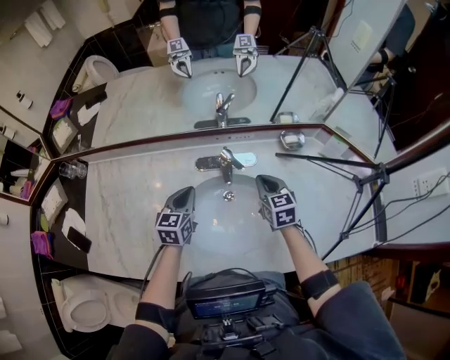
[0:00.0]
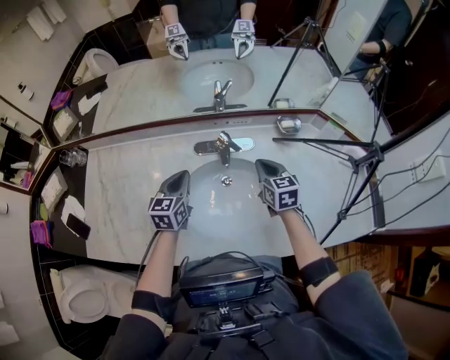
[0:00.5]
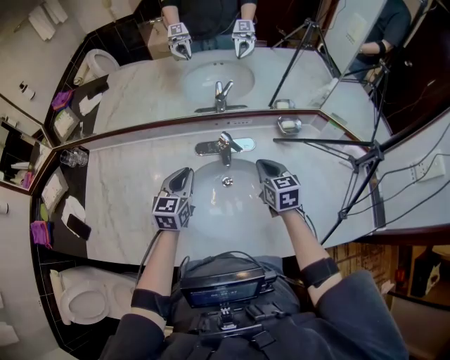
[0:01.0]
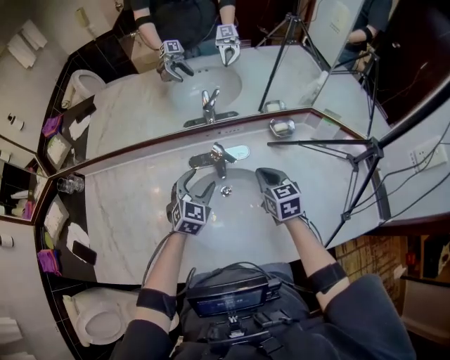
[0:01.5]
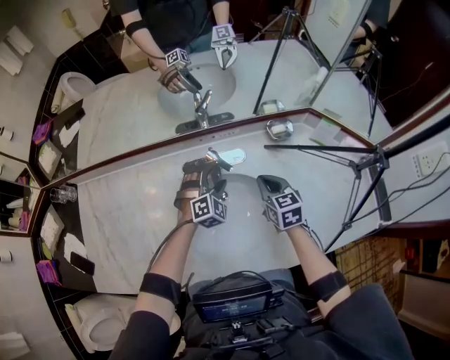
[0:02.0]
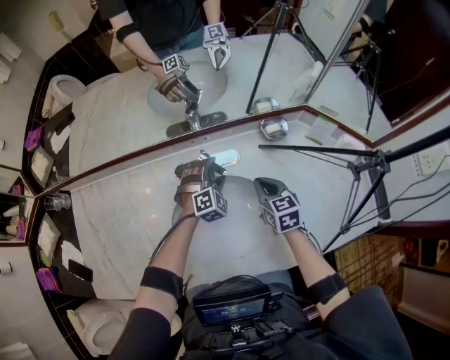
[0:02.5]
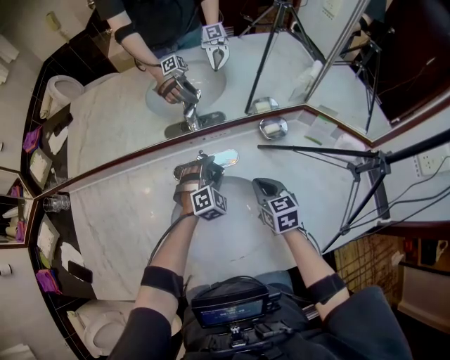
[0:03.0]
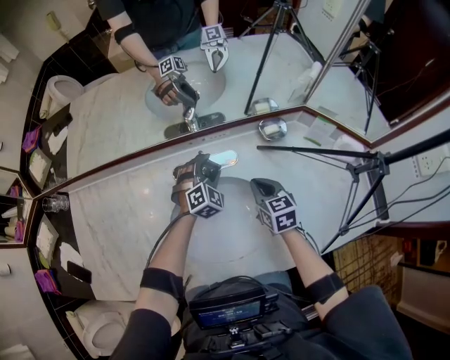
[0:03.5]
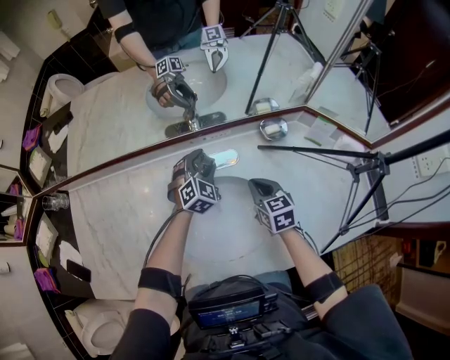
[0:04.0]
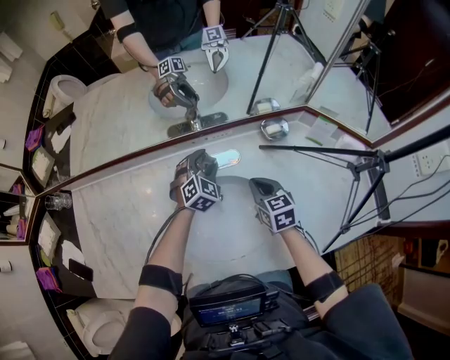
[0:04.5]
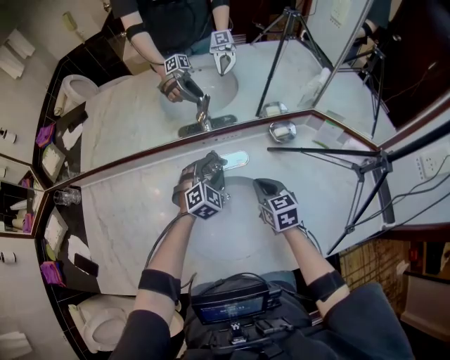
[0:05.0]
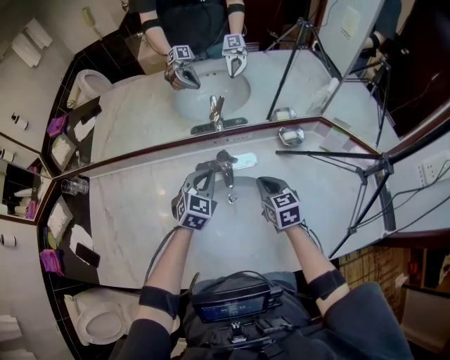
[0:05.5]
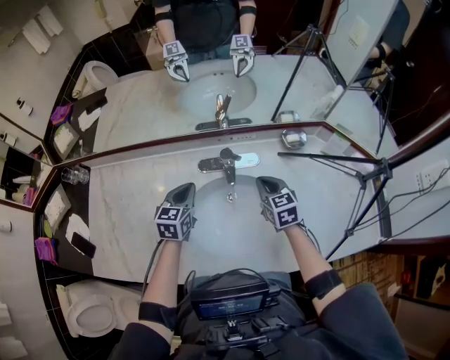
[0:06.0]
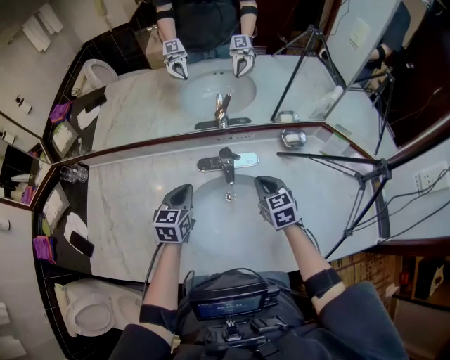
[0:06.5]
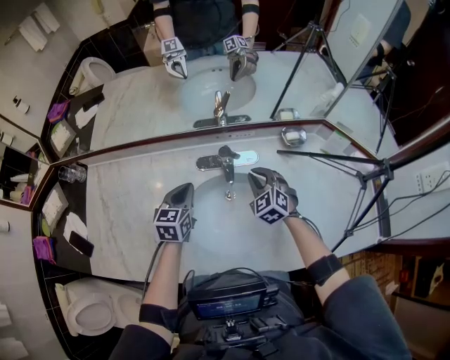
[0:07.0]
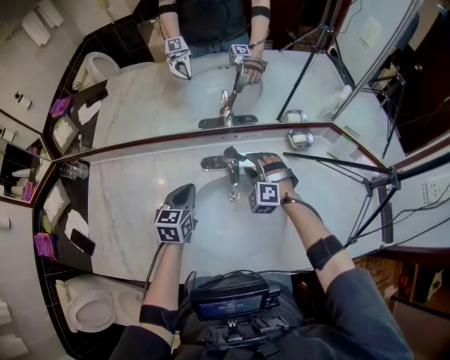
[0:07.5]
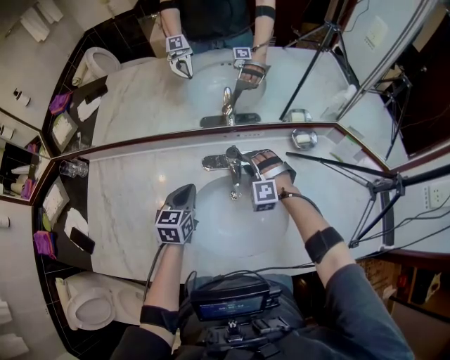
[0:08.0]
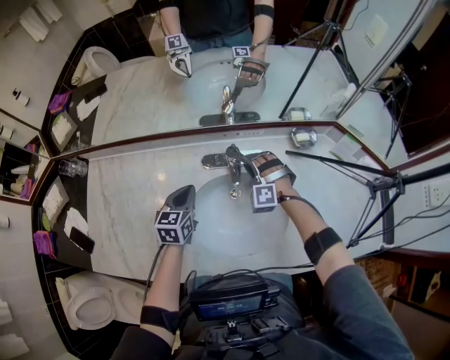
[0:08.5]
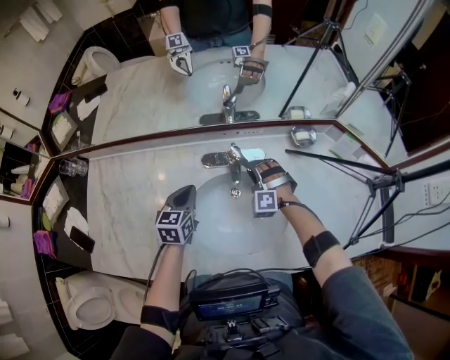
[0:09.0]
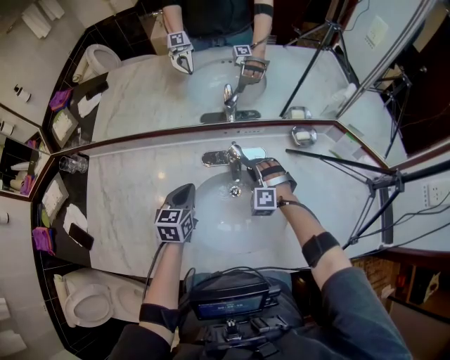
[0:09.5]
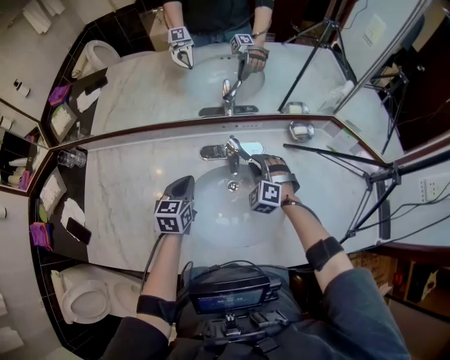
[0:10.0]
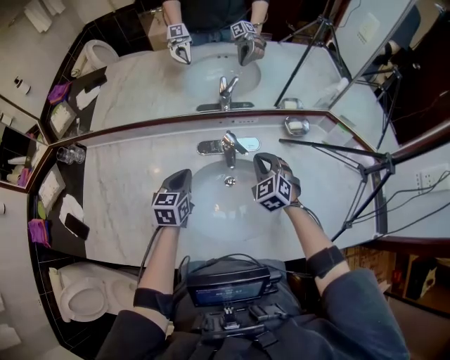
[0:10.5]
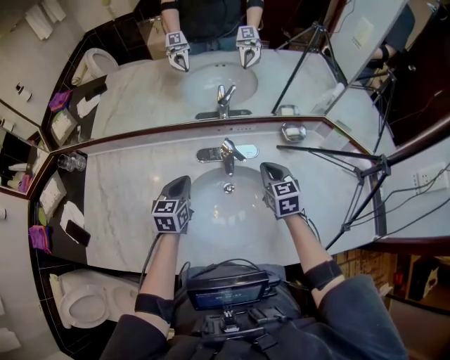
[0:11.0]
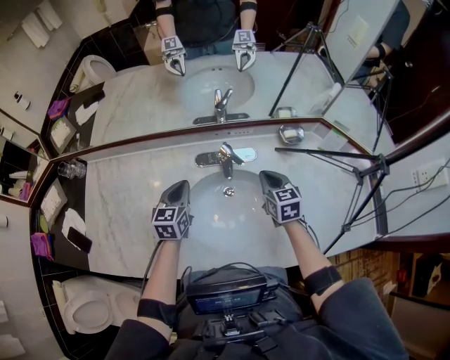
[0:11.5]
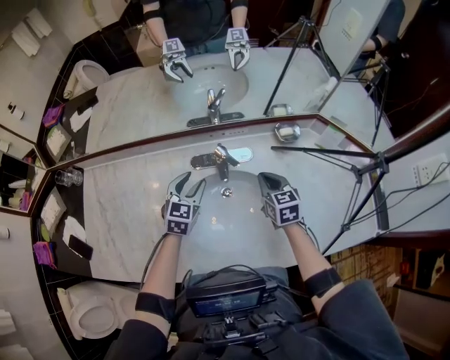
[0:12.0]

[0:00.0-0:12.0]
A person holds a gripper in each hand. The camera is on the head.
0:00.0 to 0:02.0: The left gripper travels to the right and forward by approximately 15 cm, twists approximately 70 degrees clockwise, seen from behind, and opens.
0:02.0 to 0:04.0: The left gripper is displaced forward by approximately 5 cm.
0:04.0 to 0:06.0: The right gripper changes place by approximately 5 cm; the left gripper moves to the left, backward and upward, about 20 cm, twists some 50 degrees counterclockwise, seen from behind, and closes up.
0:06.0 to 0:08.0: The right gripper moves forward, to the left and downward, about 10 cm, rotates around the line of its fingers by roughly 80 degrees, counterclockwise from behind, and opens up.
0:08.0 to 0:10.0: The right gripper swivels about 20 degrees.
0:10.0 to 0:12.0: The two grippers go some 5 cm to the right. The left gripper turns by about 20 degrees, and opens up. Meanwhile the right gripper rolls clockwise, seen from behind, by roughly 70 degrees, and closes up.

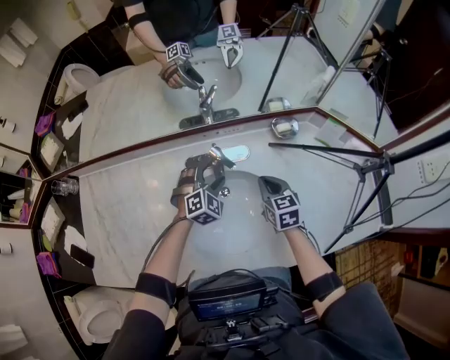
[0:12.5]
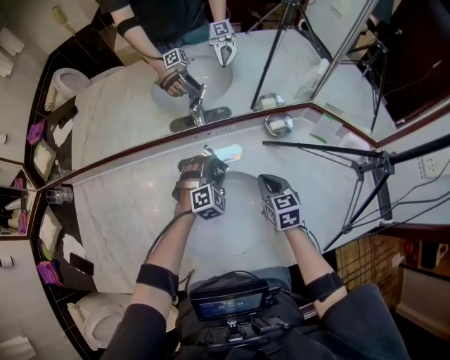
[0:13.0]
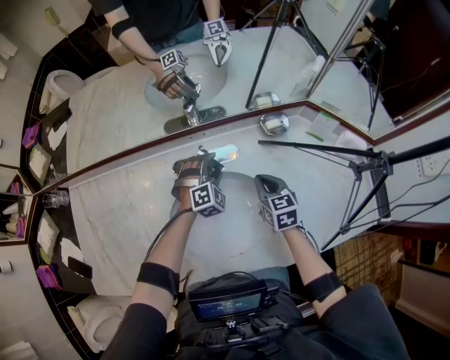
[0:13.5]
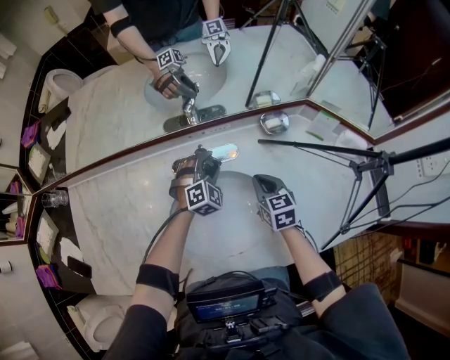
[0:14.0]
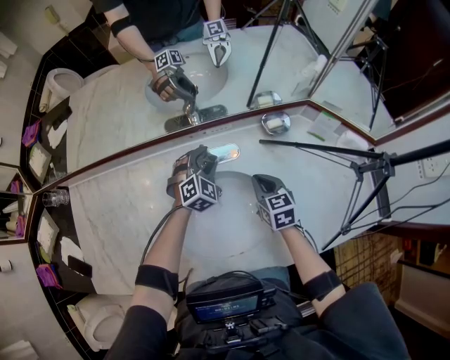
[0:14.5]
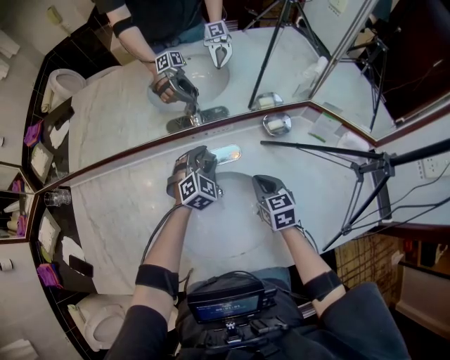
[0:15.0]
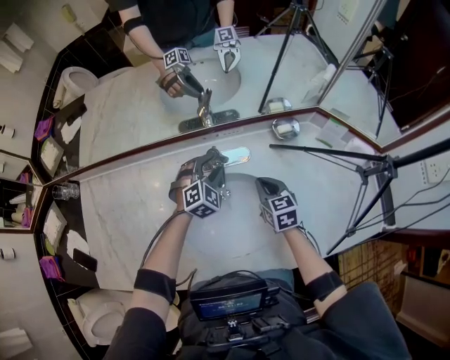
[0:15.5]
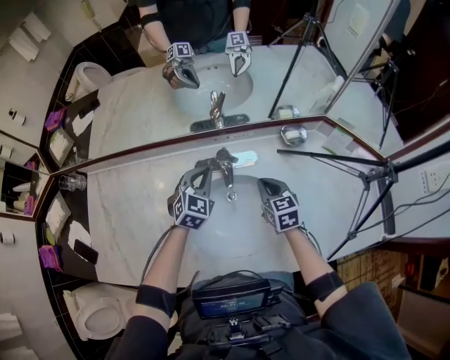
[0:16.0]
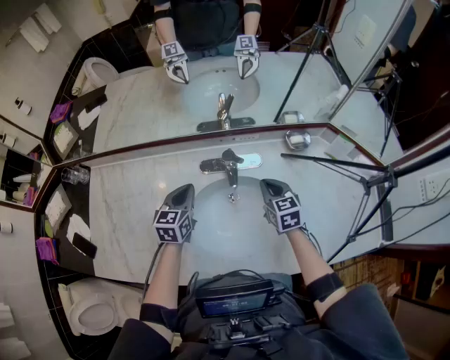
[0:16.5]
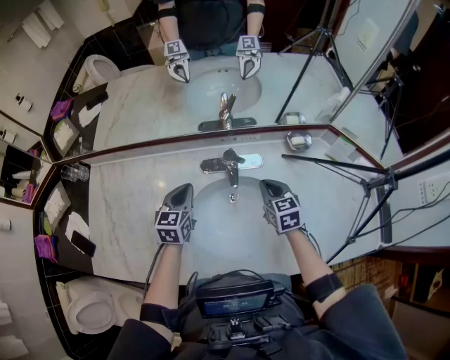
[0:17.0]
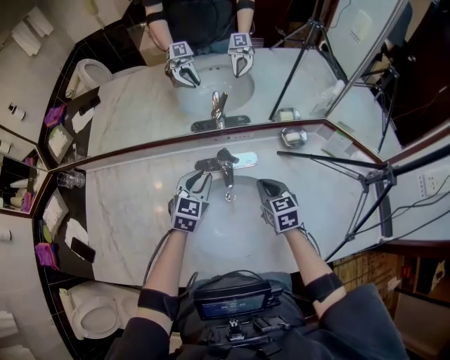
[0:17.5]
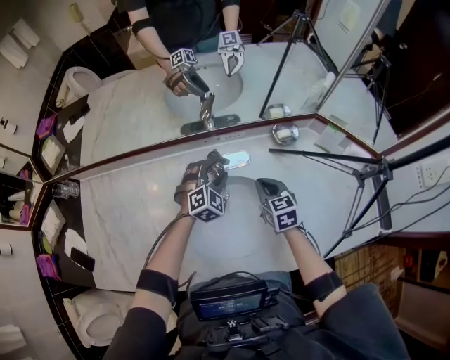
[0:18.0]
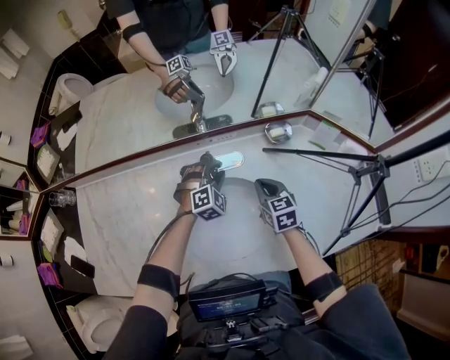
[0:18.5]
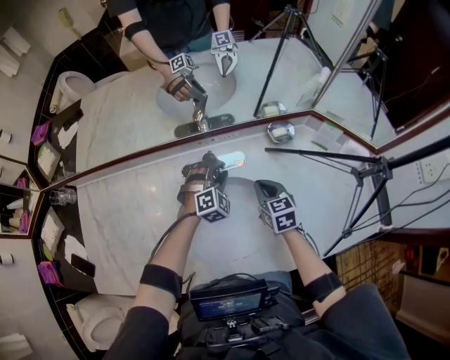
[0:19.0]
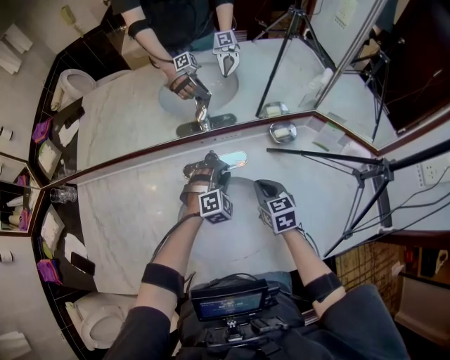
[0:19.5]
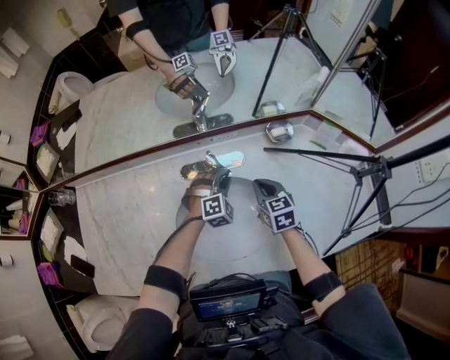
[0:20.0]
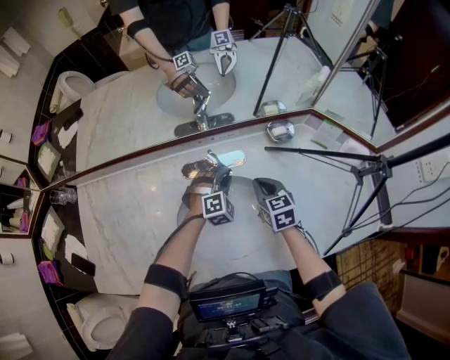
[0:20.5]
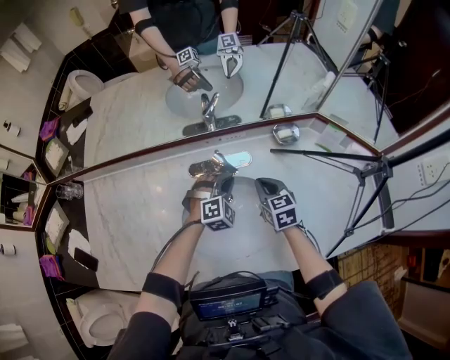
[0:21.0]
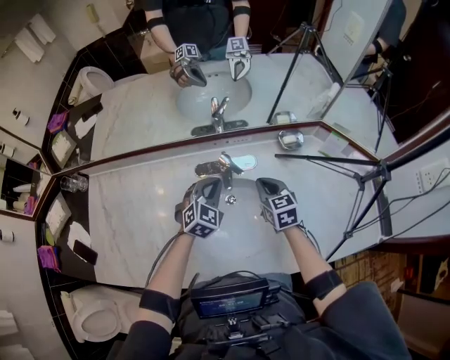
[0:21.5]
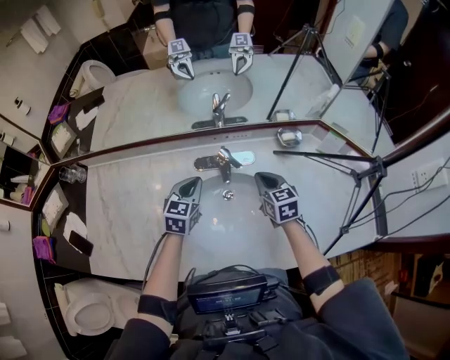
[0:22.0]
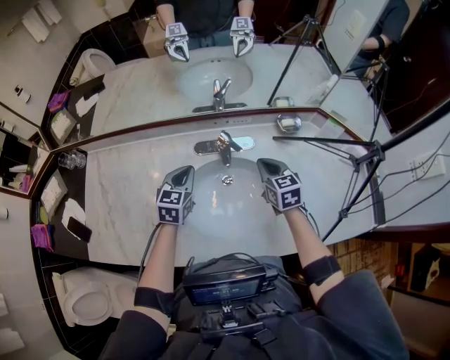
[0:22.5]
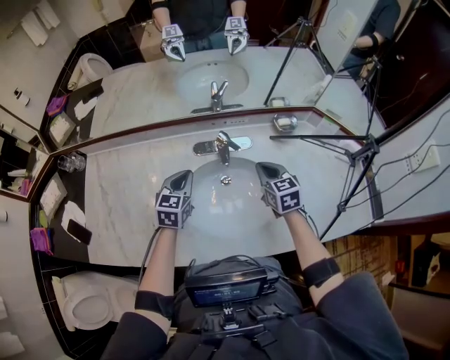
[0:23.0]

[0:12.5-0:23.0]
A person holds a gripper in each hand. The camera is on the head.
0:12.5 to 0:14.5: The left gripper goes some 5 cm forward, and closes up.
0:14.5 to 0:16.5: The right gripper ends up some 5 cm from where it was. Meanwhile the left gripper travels to the left and backward by roughly 20 cm, rotates around the line of its fingers by roughly 60 degrees, counterclockwise from behind, and closes up.
0:16.5 to 0:19.0: The left gripper heads to the right, covering approximately 20 cm, twists about 70 degrees clockwise, seen from behind, and opens.
0:19.0 to 0:21.0: The grippers make only small movements.
0:21.0 to 0:23.0: The right gripper goes about 5 cm upward; the left gripper goes roughly 20 cm to the left, upward and backward, and rotates around the line of its fingers by approximately 60 degrees, counterclockwise from behind.

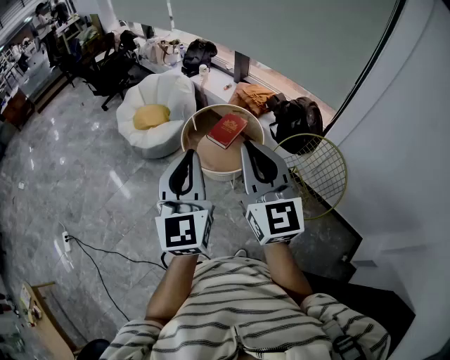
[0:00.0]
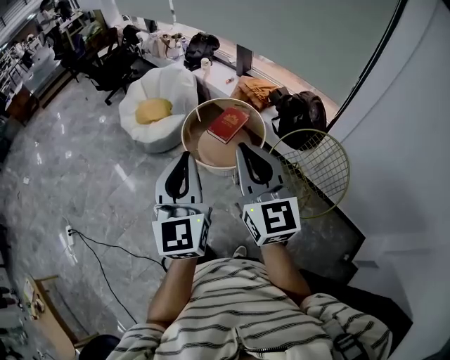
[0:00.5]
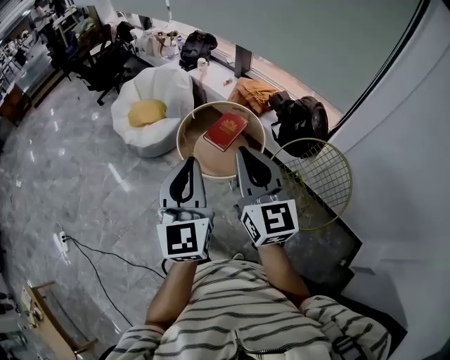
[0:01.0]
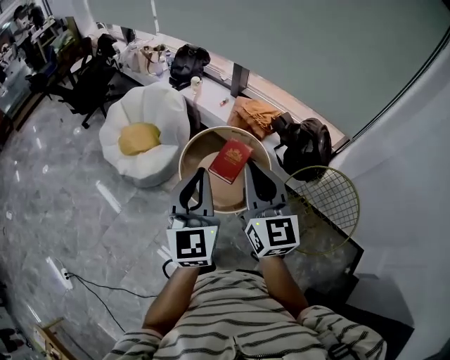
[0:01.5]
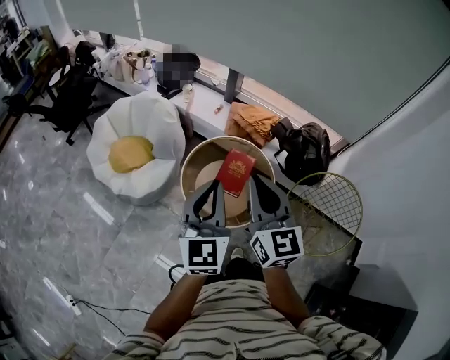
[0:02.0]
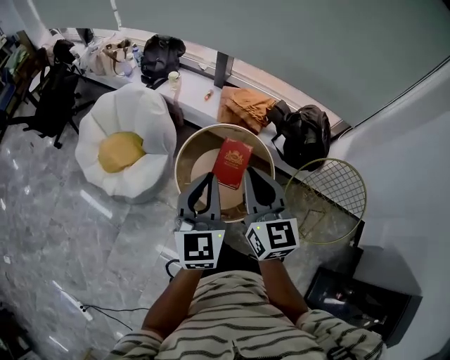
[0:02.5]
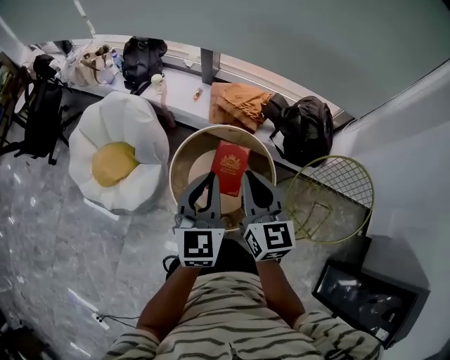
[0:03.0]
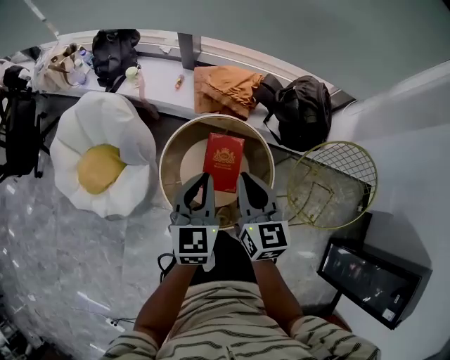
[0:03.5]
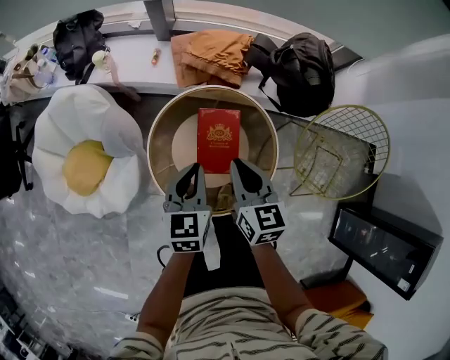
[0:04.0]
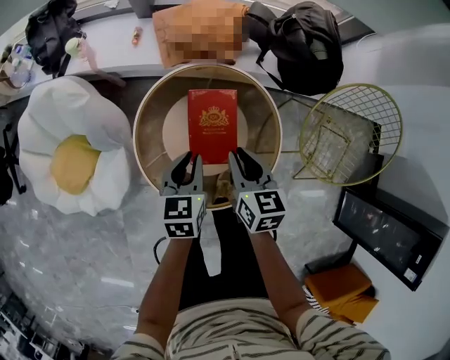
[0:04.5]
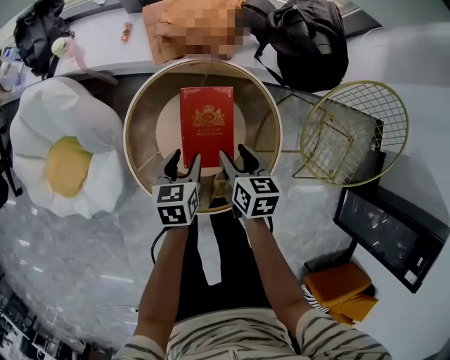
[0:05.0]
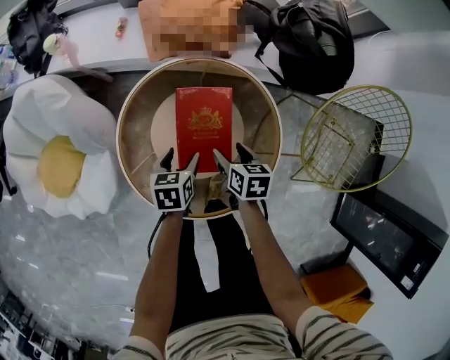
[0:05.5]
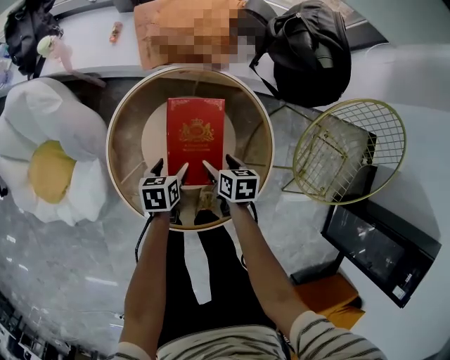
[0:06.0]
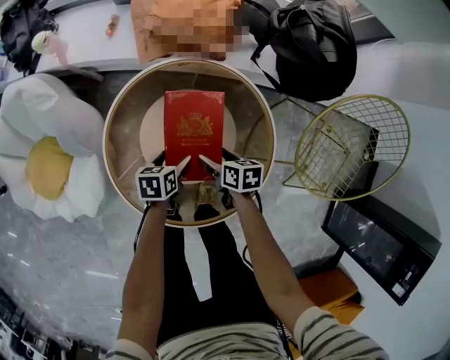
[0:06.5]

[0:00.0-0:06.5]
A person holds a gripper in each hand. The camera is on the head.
0:00.0 to 0:02.0: Both grippers are carried forward, roughly 40 cm. The left gripper swivels some 20 degrees.
0:02.0 to 0:04.5: Both grippers move downward, about 50 cm. The right gripper angles its fingers downward, by approximately 30 degrees. Meanwhile the left gripper tips its fingers downward by about 40 degrees.
0:04.5 to 0:06.5: Both grippers move downward, about 25 cm. The left gripper turns by approximately 30 degrees, and opens up; the right gripper rotates approximately 30 degrees, and opens.
